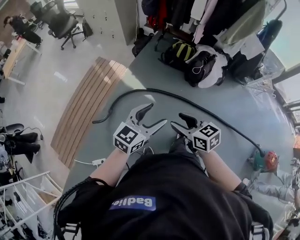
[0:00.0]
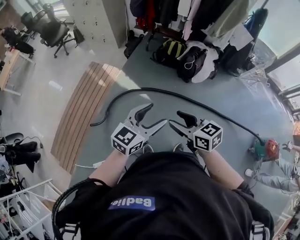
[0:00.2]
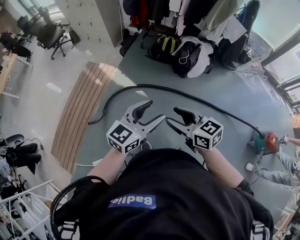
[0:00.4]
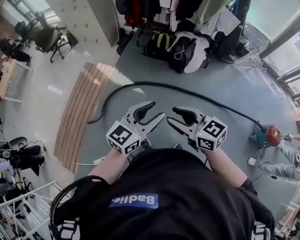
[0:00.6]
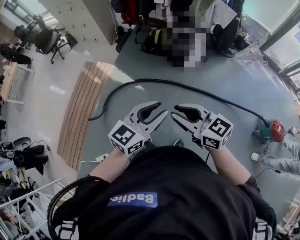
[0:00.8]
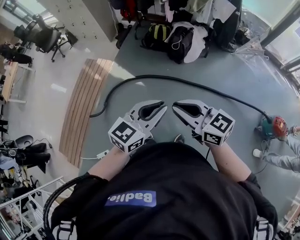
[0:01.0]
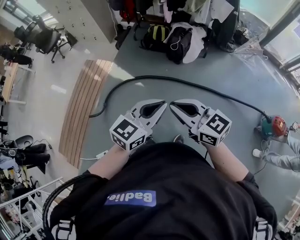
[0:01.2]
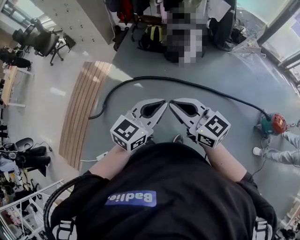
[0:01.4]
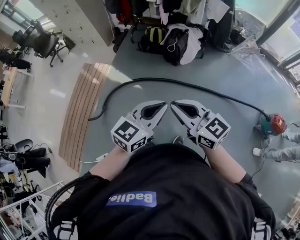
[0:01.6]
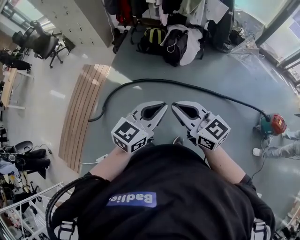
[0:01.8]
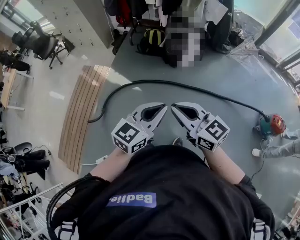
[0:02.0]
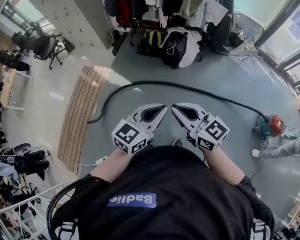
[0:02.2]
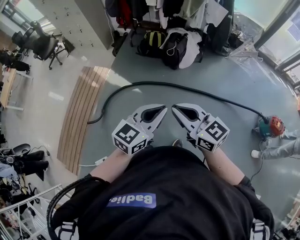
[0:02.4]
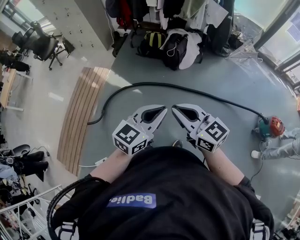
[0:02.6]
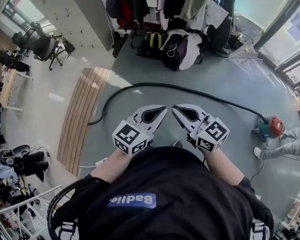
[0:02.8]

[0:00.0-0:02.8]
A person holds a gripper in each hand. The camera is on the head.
0:00.0 to 0:01.4: The right gripper moves backward, to the right and upward, about 25 cm, rotates about 20 degrees, and closes. The left gripper heads to the right and backward, covering about 25 cm, and closes its fingers.
0:01.4 to 0:02.8: The grippers move only a little.

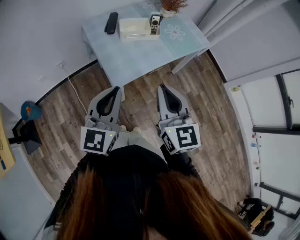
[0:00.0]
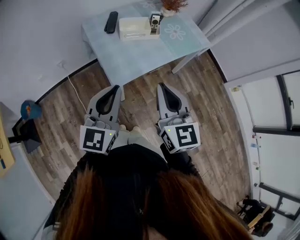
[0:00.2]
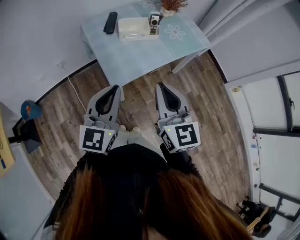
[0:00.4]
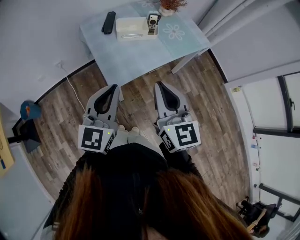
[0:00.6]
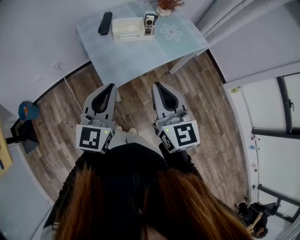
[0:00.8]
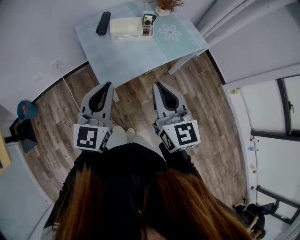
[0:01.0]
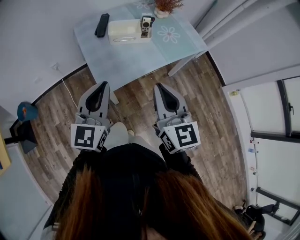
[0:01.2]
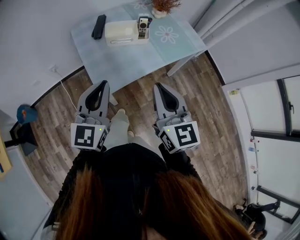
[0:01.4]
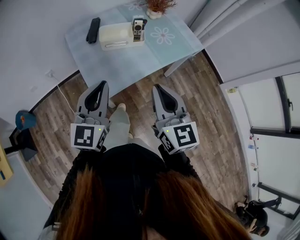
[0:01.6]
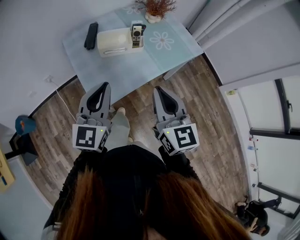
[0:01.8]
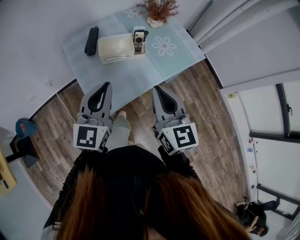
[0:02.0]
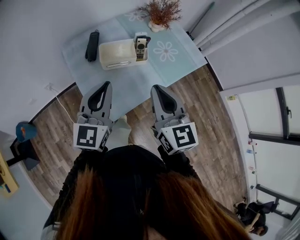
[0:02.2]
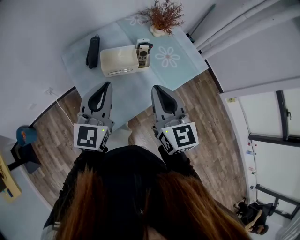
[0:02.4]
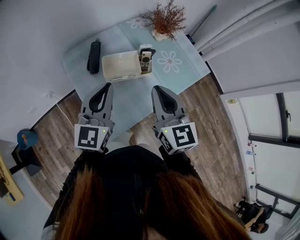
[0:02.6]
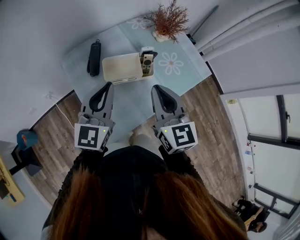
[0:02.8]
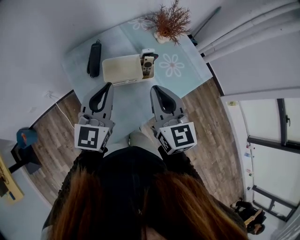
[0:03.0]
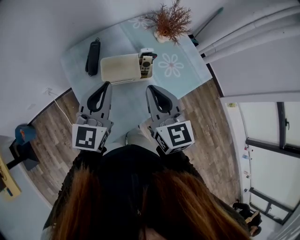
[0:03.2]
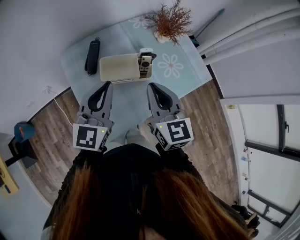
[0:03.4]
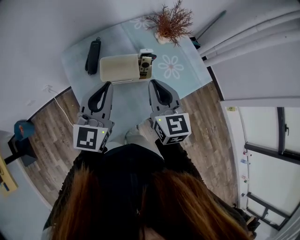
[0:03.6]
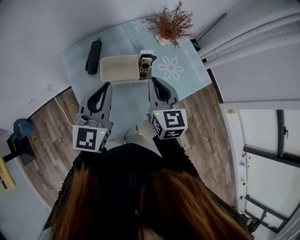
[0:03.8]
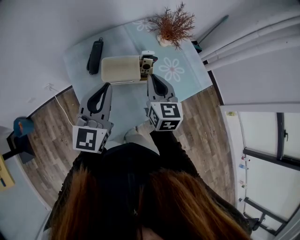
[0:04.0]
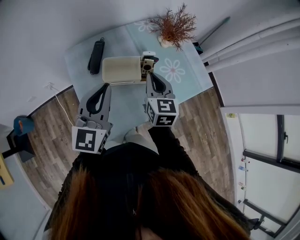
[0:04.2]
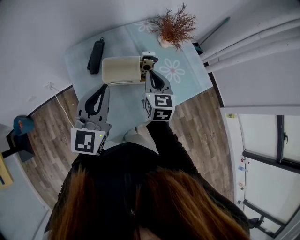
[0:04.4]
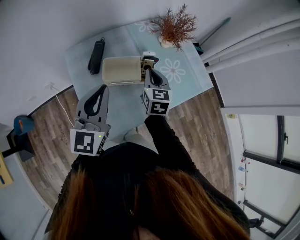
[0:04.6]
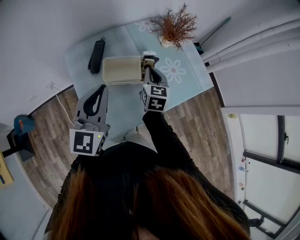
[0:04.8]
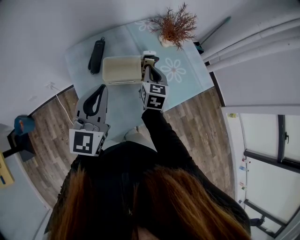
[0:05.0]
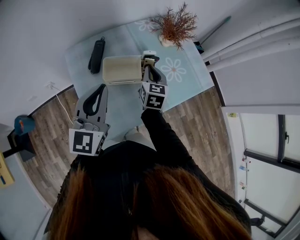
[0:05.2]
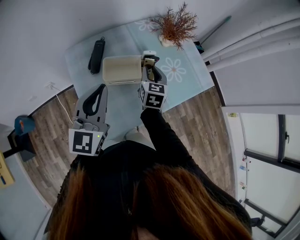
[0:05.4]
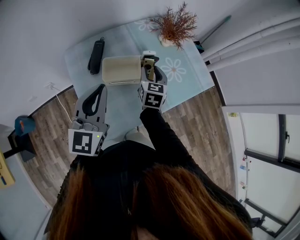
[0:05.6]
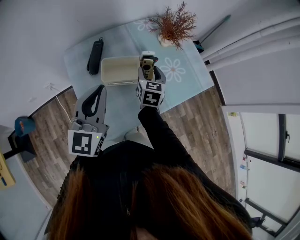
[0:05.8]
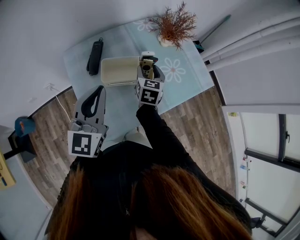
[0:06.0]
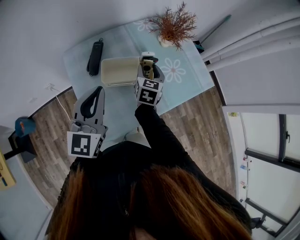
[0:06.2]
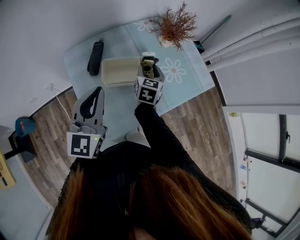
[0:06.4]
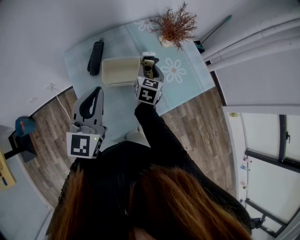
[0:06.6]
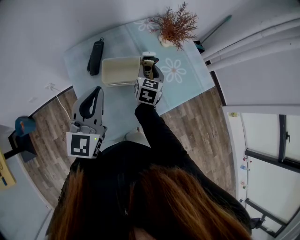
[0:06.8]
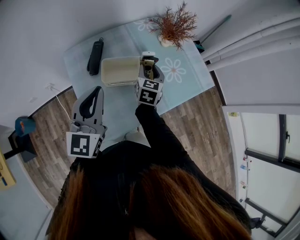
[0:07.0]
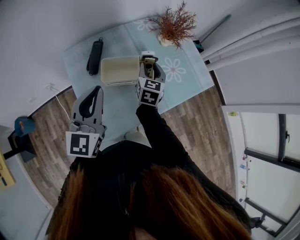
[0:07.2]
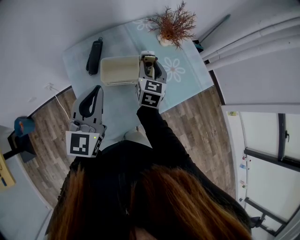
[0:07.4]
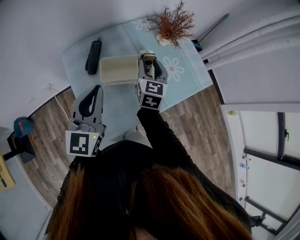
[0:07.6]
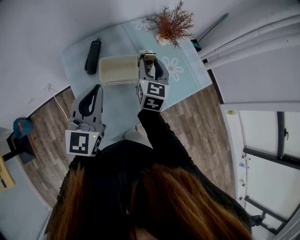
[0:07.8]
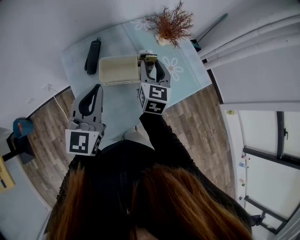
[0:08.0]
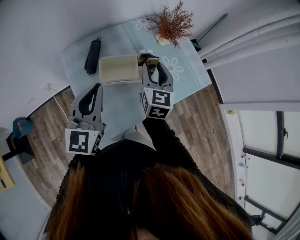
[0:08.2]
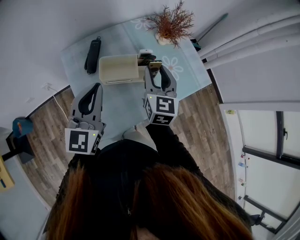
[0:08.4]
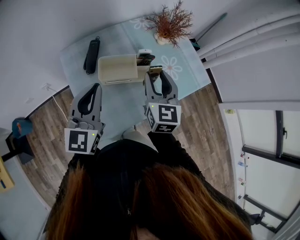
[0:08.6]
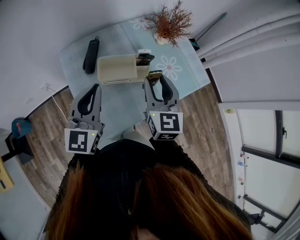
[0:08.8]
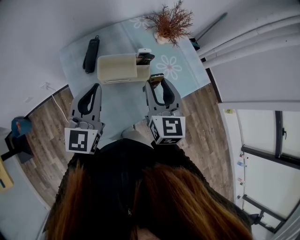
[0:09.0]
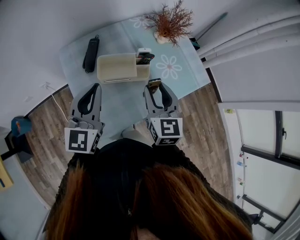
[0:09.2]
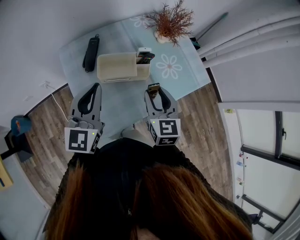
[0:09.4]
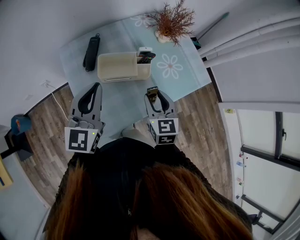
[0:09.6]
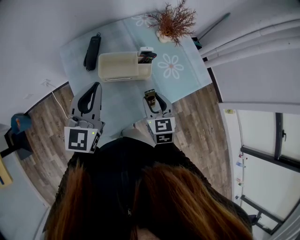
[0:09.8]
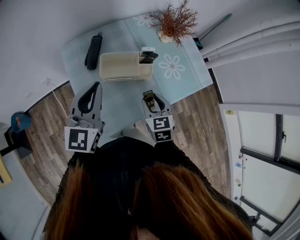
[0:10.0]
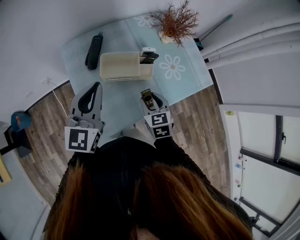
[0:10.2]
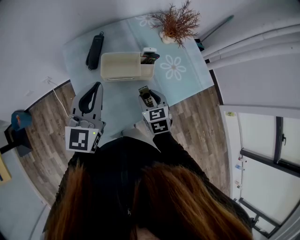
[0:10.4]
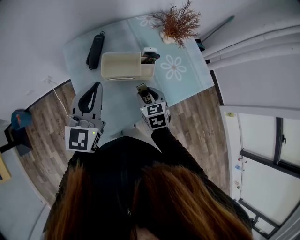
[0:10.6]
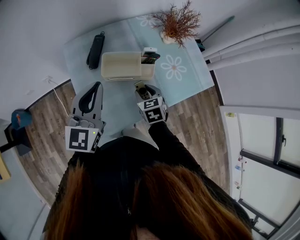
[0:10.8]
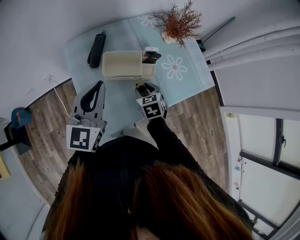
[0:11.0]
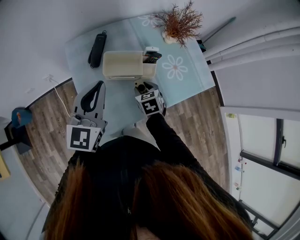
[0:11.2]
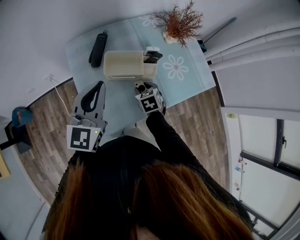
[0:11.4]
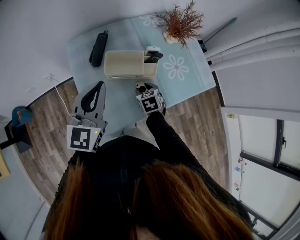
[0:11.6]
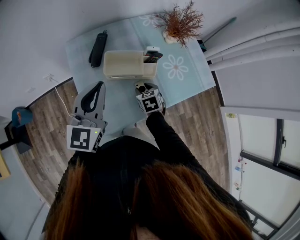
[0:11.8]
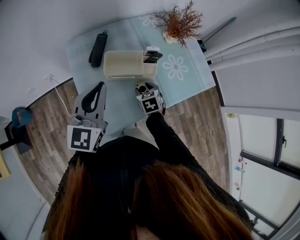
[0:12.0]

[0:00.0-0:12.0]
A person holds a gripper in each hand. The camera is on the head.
0:00.0 to 0:01.6: The left gripper moves forward, some 10 cm, while the right gripper is displaced forward and to the right by some 10 cm.
0:01.6 to 0:03.0: Both grippers move forward, some 20 cm.
0:03.0 to 0:04.4: The right gripper moves downward and forward, approximately 15 cm.
0:04.4 to 0:06.0: The right gripper shifts roughly 5 cm downward, and opens.
0:06.0 to 0:07.6: The right gripper goes roughly 5 cm upward.
0:07.6 to 0:09.0: The right gripper shifts approximately 15 cm backward and upward.
0:09.0 to 0:10.4: The right gripper moves downward, approximately 15 cm, and tips its fingers downward by about 30 degrees.
0:10.4 to 0:12.0: The right gripper travels downward by about 10 cm.

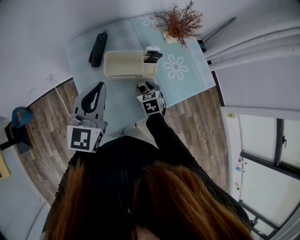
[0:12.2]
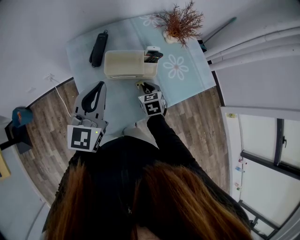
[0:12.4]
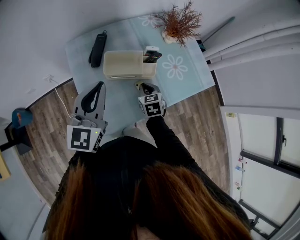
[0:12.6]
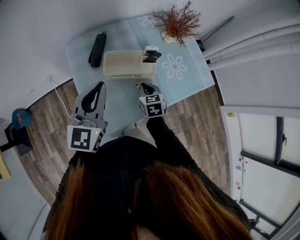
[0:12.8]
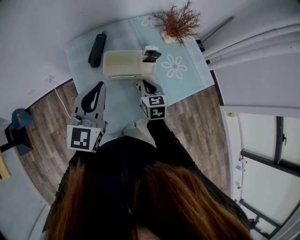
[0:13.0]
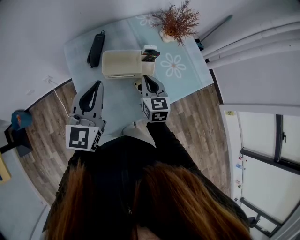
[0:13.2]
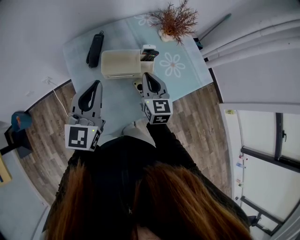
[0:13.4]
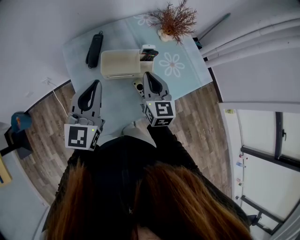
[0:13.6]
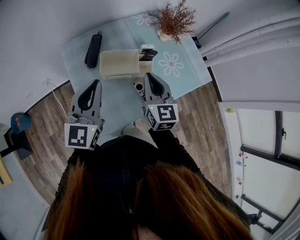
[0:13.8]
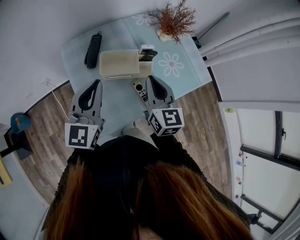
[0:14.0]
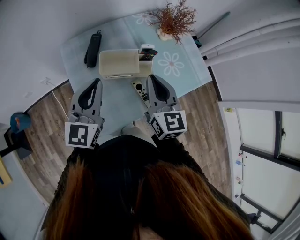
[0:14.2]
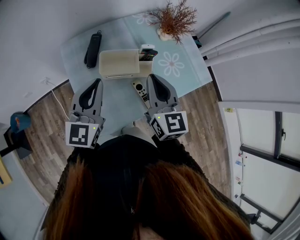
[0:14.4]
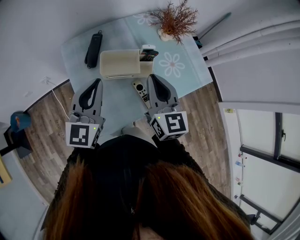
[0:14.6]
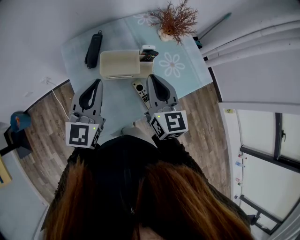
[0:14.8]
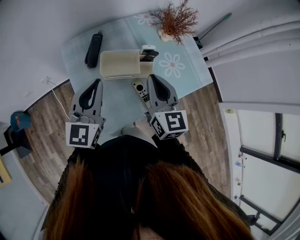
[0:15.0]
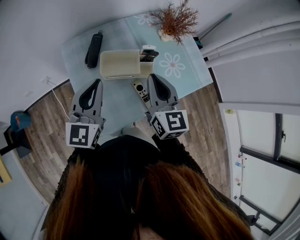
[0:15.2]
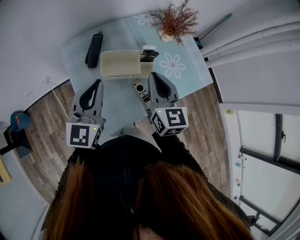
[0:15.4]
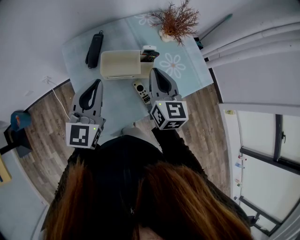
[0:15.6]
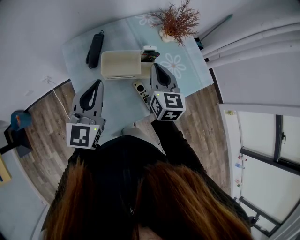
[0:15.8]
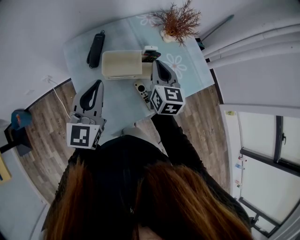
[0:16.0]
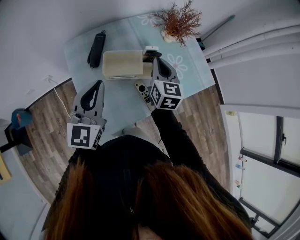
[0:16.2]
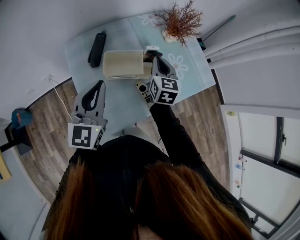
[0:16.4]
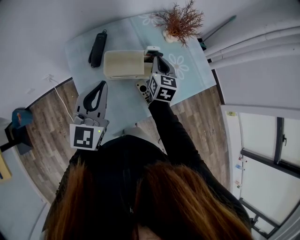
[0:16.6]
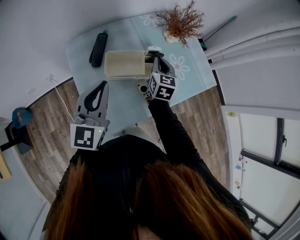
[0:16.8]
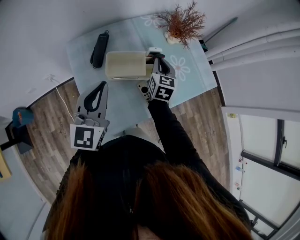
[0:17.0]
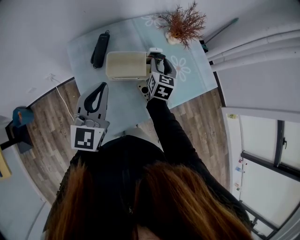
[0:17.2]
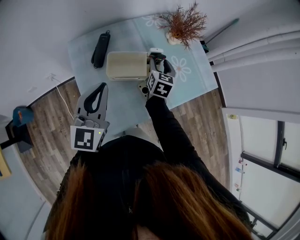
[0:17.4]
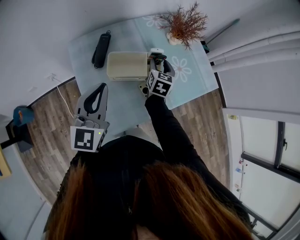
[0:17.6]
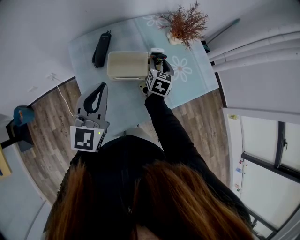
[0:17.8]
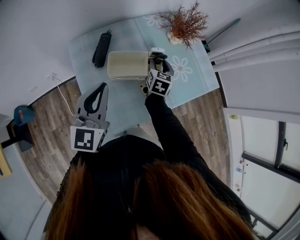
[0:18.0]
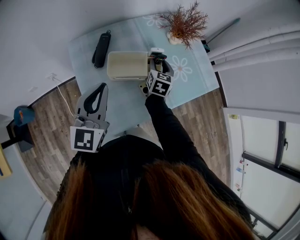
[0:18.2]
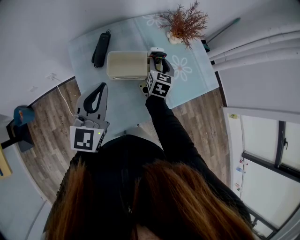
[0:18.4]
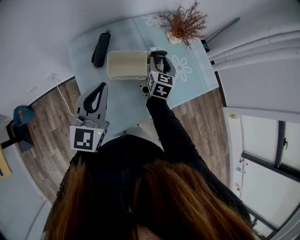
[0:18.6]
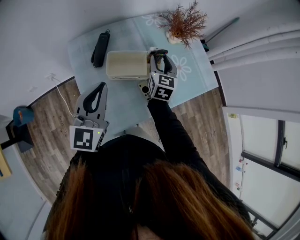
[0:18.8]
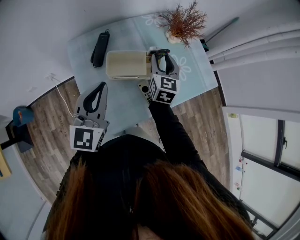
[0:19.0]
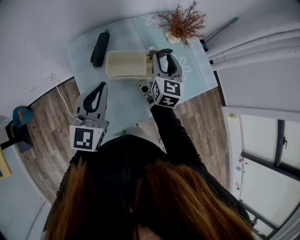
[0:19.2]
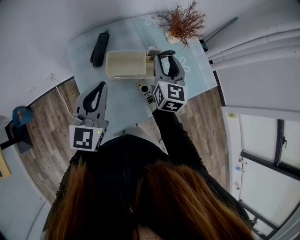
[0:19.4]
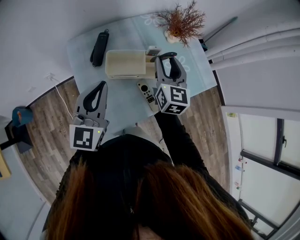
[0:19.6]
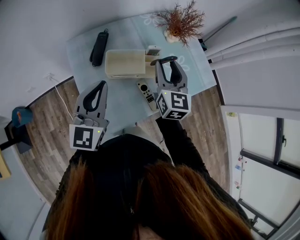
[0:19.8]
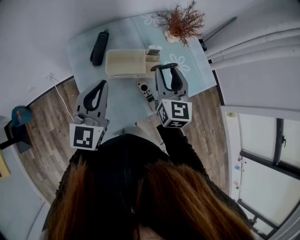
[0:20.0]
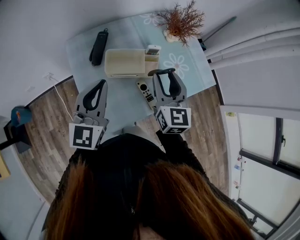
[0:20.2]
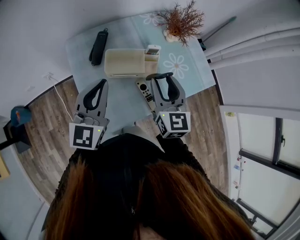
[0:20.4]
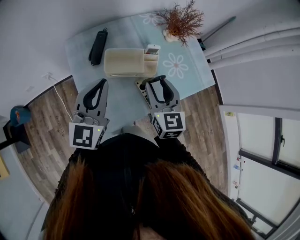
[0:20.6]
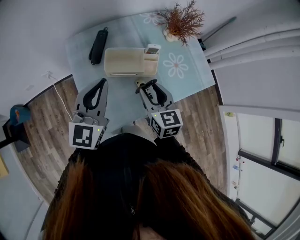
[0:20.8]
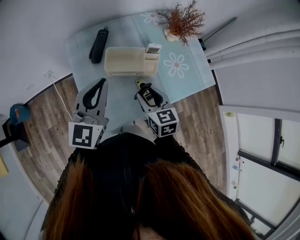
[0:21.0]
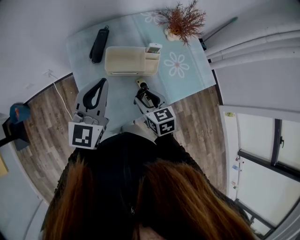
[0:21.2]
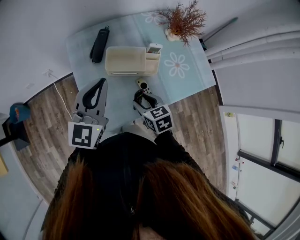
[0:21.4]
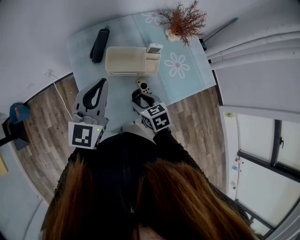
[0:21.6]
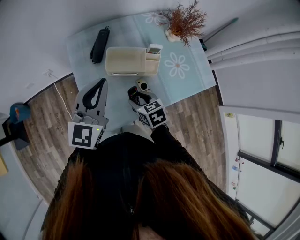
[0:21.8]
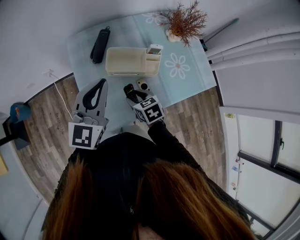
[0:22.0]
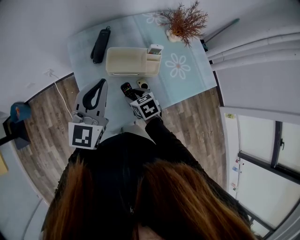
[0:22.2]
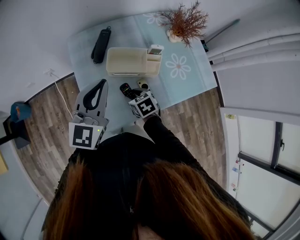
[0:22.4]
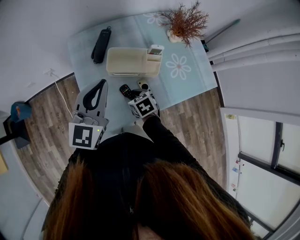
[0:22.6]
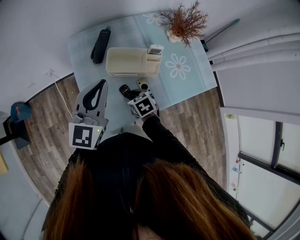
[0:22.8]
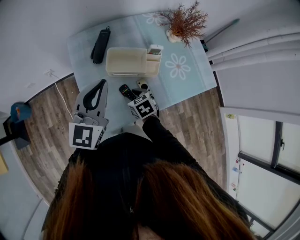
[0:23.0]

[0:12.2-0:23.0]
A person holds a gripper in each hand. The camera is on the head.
0:12.2 to 0:13.8: The right gripper moves upward, about 20 cm, points its fingers some 40 degrees further upward, and closes its fingers.
0:13.8 to 0:15.2: The grippers stay close to where they were, moving slightly.
0:15.2 to 0:16.8: The right gripper heads downward and forward, covering approximately 15 cm, and swivels some 20 degrees.
0:16.8 to 0:18.4: The right gripper opens its fingers.
0:18.4 to 0:20.0: The right gripper shifts some 15 cm upward and backward, and swivels some 20 degrees.
0:20.0 to 0:21.4: The right gripper goes approximately 20 cm downward, backward and to the left, and tips its fingers downward by some 30 degrees.
0:21.4 to 0:23.0: The right gripper goes approximately 10 cm downward.
